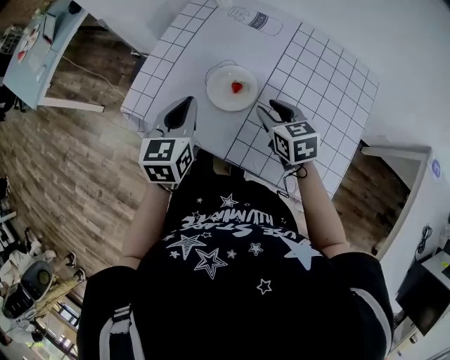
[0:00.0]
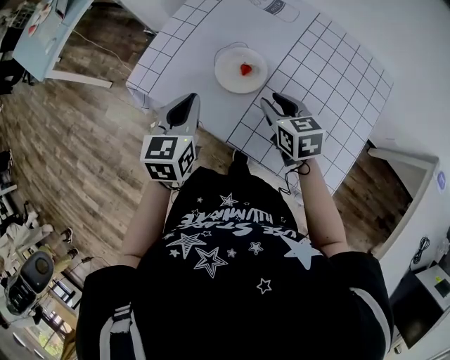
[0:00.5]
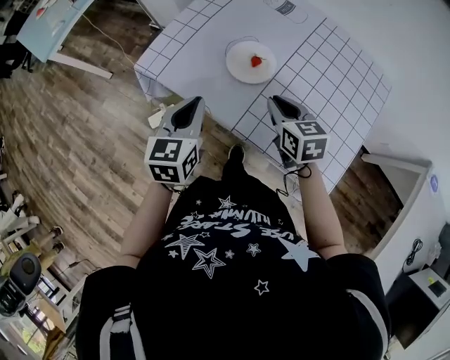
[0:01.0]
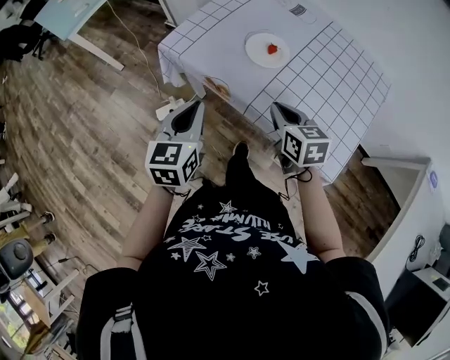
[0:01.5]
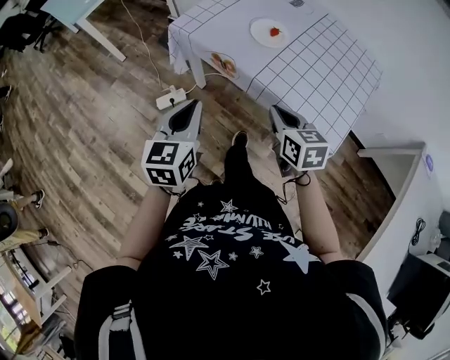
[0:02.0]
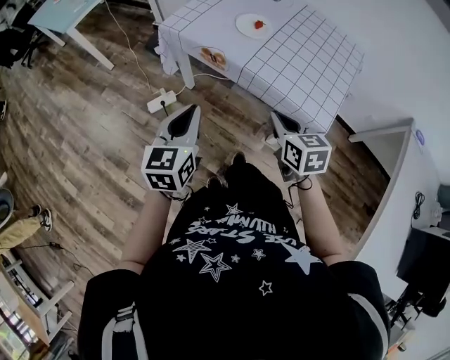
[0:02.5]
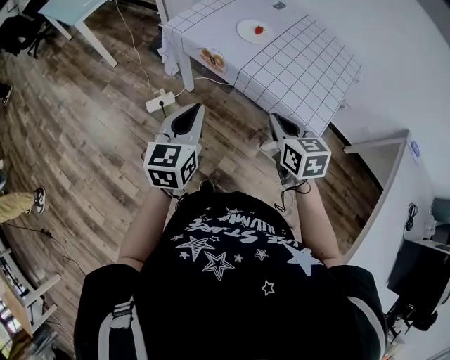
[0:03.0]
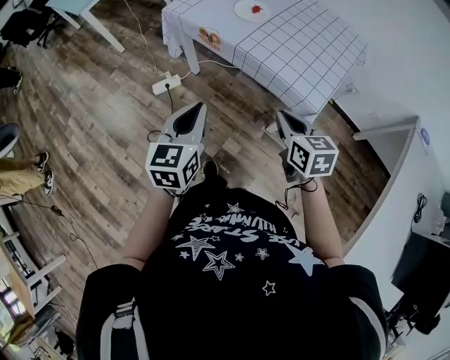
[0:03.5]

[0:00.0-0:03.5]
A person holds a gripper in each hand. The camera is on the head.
0:00.0 to 0:02.0: Both grippers move backward, about 25 cm. The right gripper closes its fingers.
0:02.0 to 0:03.5: Both grippers travel together backward and to the right, roughly 15 cm.

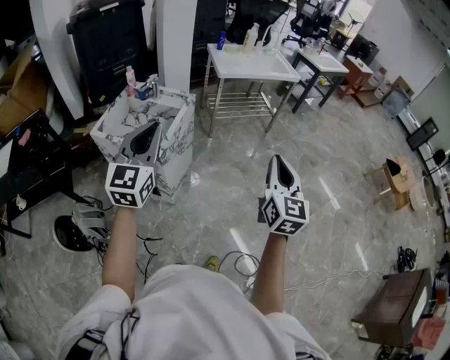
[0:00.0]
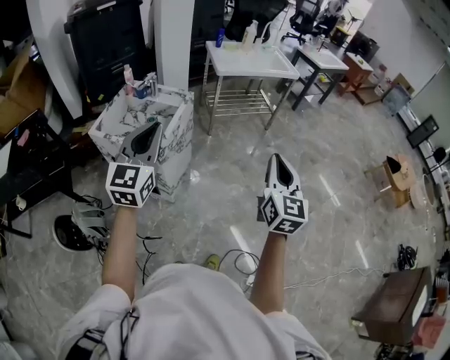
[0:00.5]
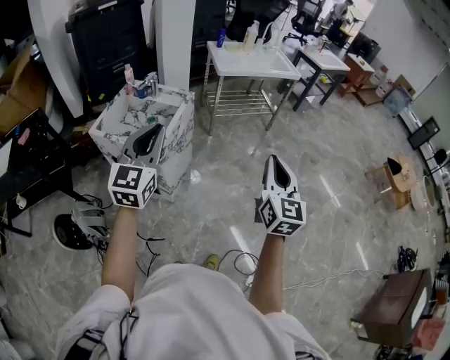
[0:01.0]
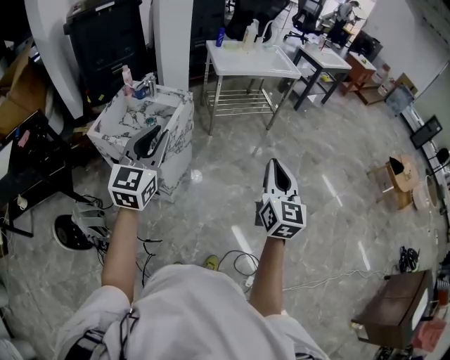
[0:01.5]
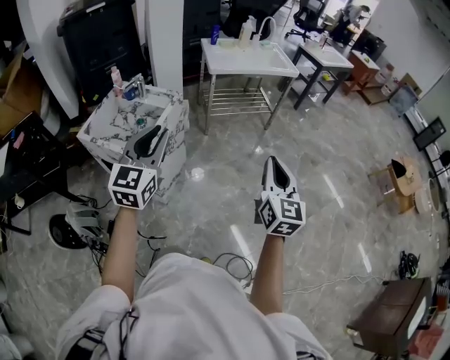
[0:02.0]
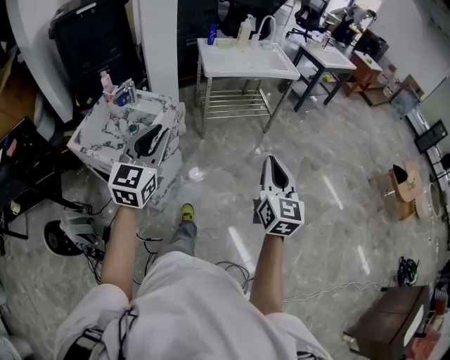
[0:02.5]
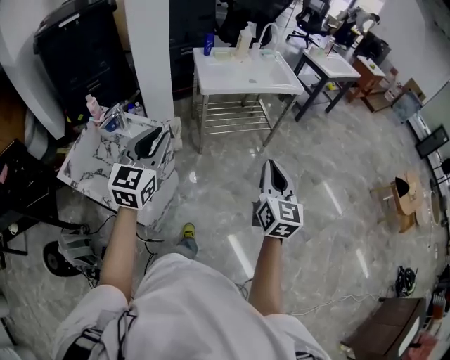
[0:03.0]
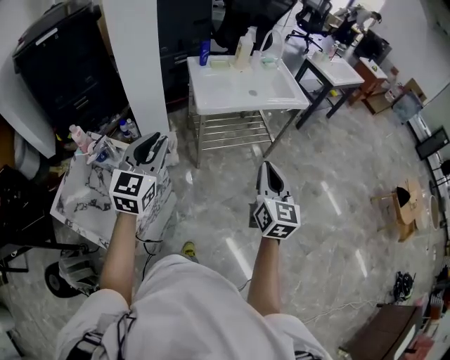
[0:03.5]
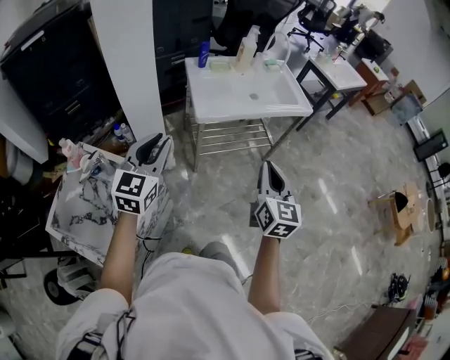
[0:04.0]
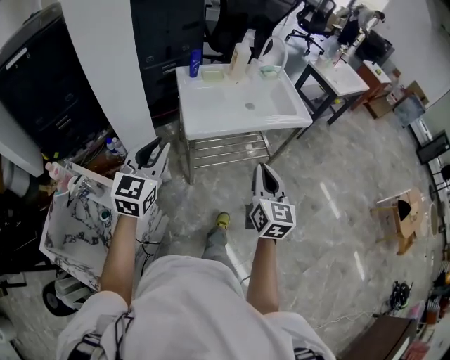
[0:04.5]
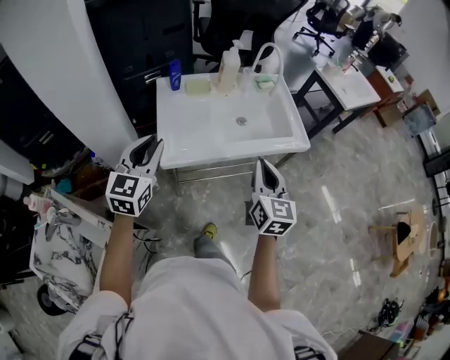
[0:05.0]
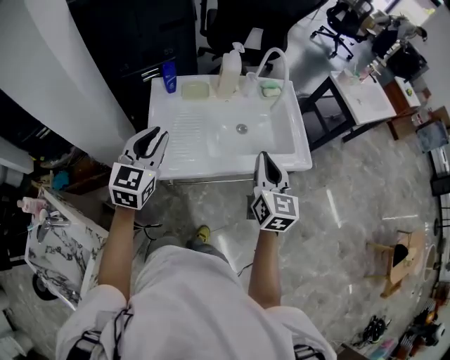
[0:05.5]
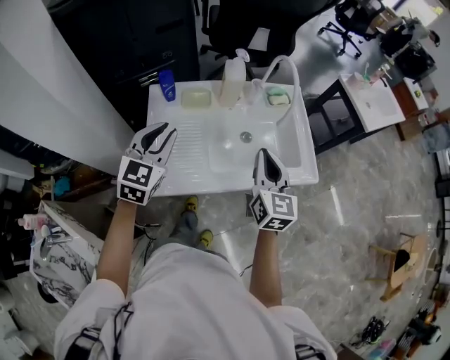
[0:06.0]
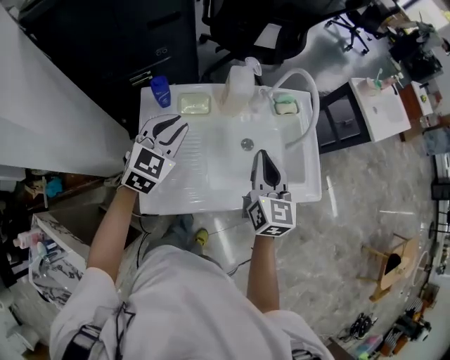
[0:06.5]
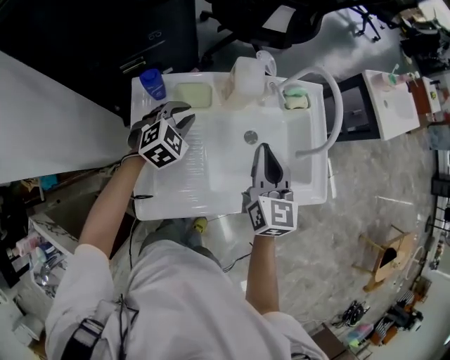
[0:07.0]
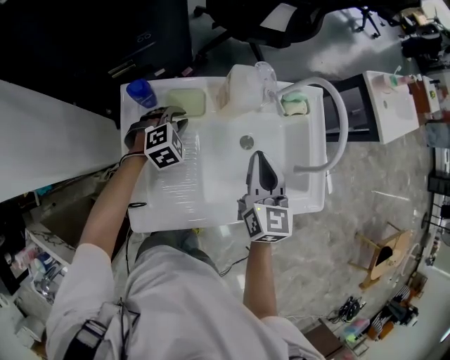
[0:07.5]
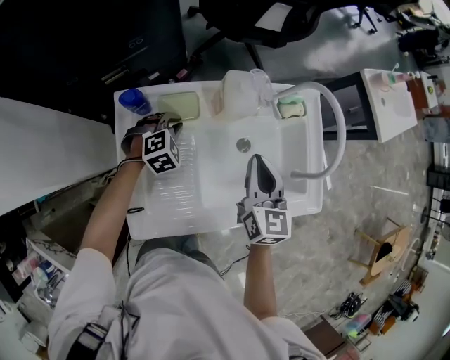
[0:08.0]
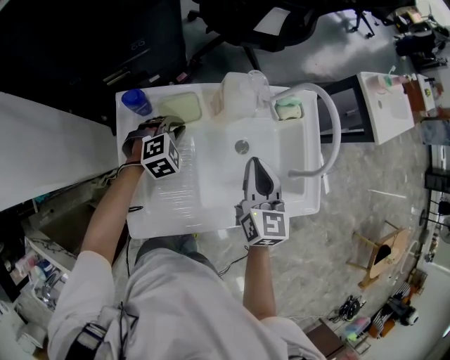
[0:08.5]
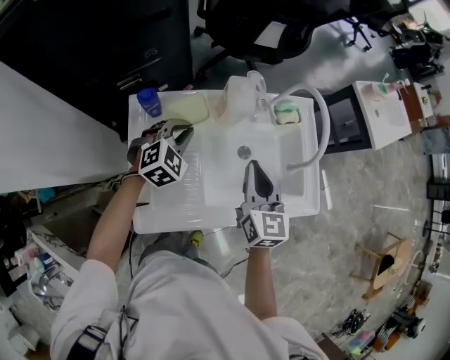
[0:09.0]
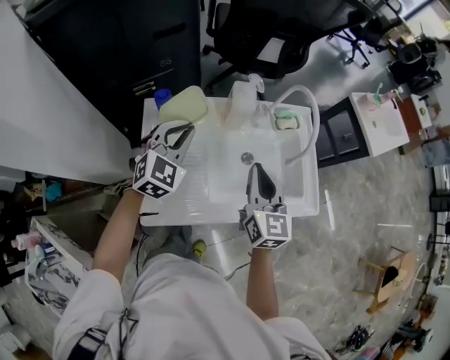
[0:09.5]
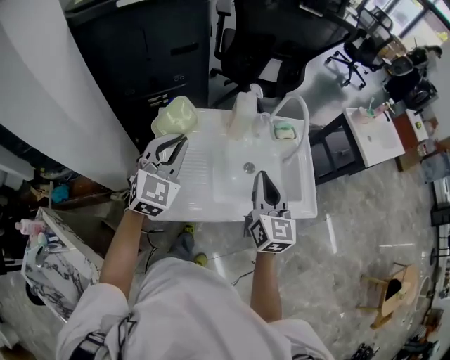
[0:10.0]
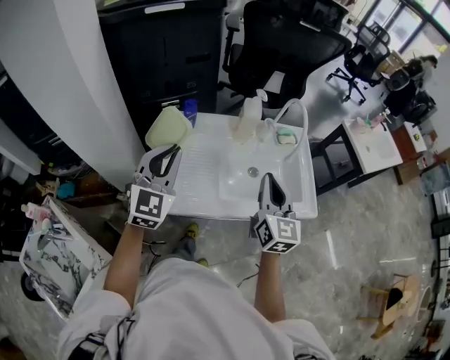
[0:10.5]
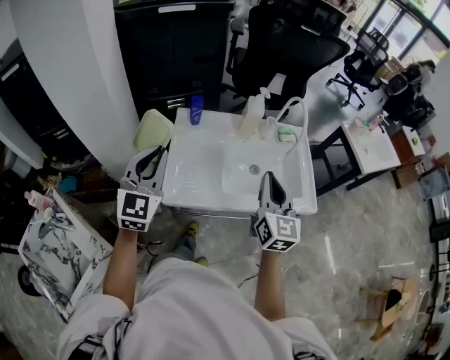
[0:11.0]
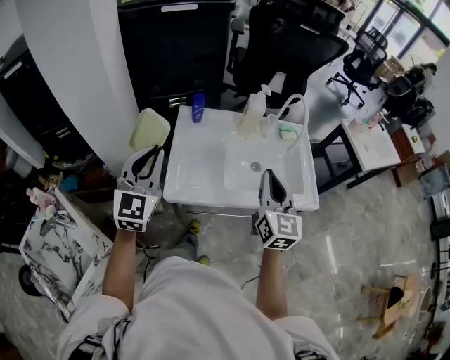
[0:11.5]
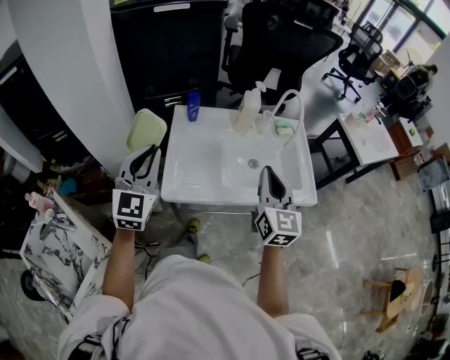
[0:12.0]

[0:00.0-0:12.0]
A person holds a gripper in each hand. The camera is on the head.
0:00.0 to 0:02.0: Both grippers travel together to the right and forward, some 10 cm.
0:02.0 to 0:04.0: Both grippers are carried forward, roughly 50 cm.
0:04.0 to 0:06.0: The pair of grippers is taken forward, about 60 cm.
0:06.0 to 0:08.0: The right gripper heads forward and downward, covering some 20 cm; the left gripper is displaced downward and forward by some 35 cm, and angles its fingers downward, by some 40 degrees.
0:08.0 to 0:10.0: The left gripper heads upward and backward, covering approximately 35 cm, and points its fingers approximately 40 degrees further upward; the right gripper travels backward and upward by roughly 20 cm.
0:10.0 to 0:12.0: The left gripper goes approximately 20 cm backward and to the left. The right gripper goes approximately 10 cm backward and upward.

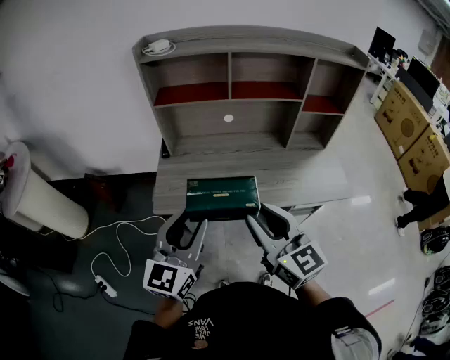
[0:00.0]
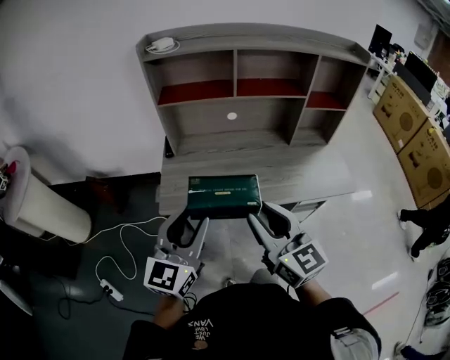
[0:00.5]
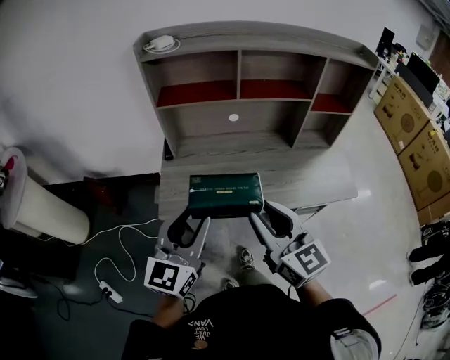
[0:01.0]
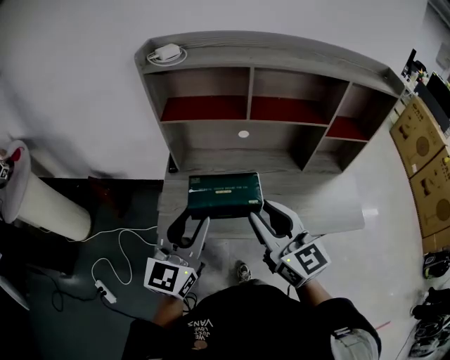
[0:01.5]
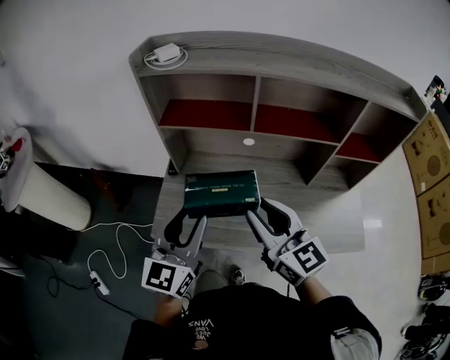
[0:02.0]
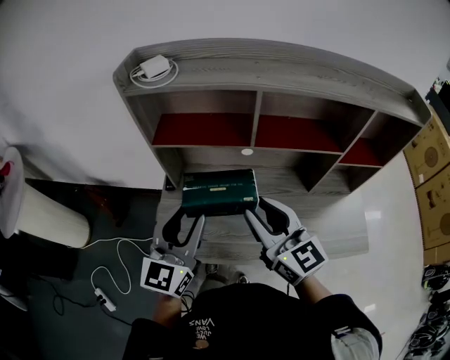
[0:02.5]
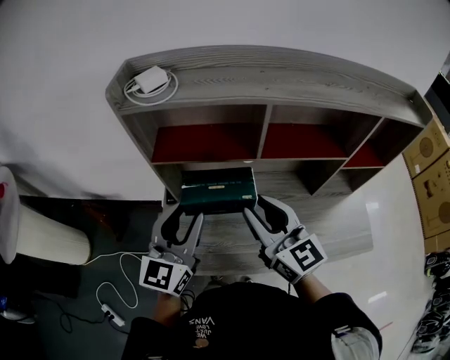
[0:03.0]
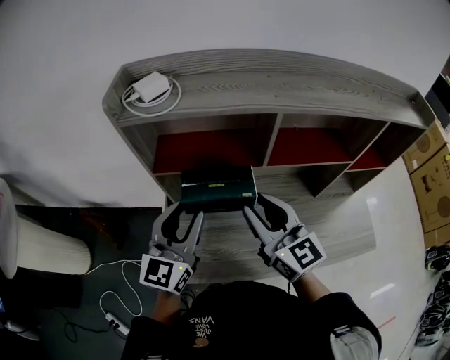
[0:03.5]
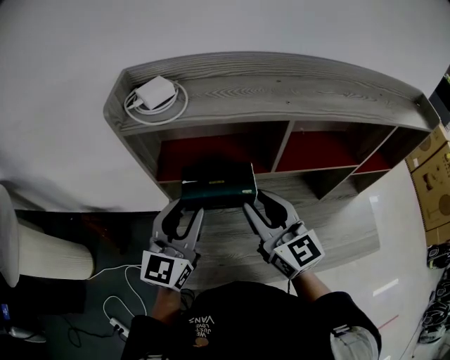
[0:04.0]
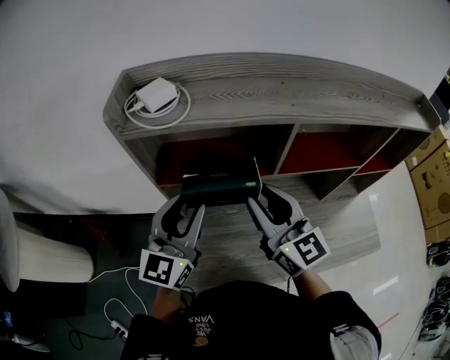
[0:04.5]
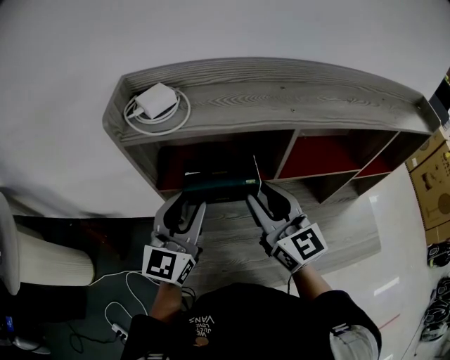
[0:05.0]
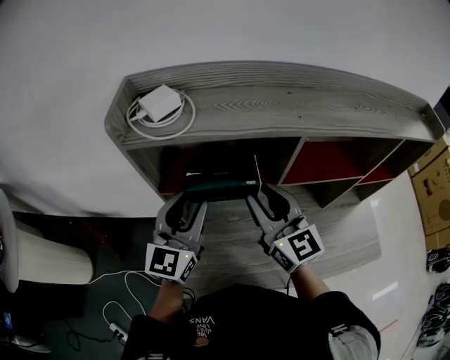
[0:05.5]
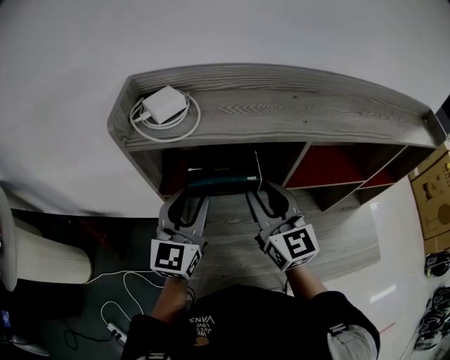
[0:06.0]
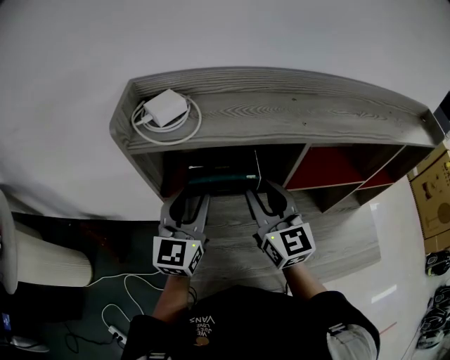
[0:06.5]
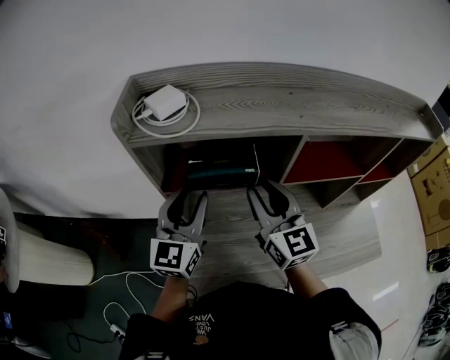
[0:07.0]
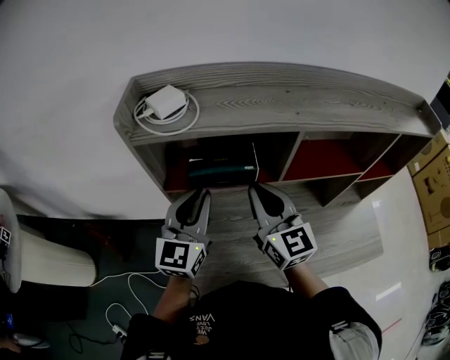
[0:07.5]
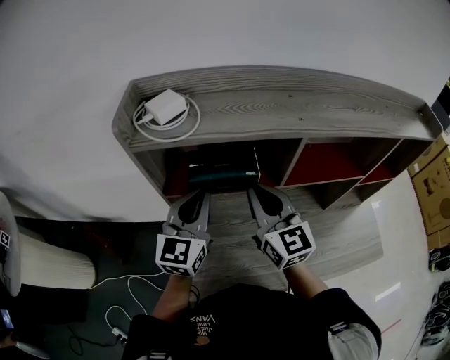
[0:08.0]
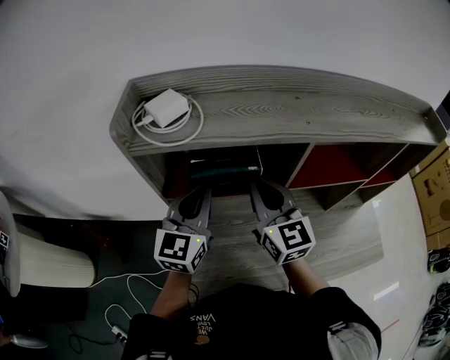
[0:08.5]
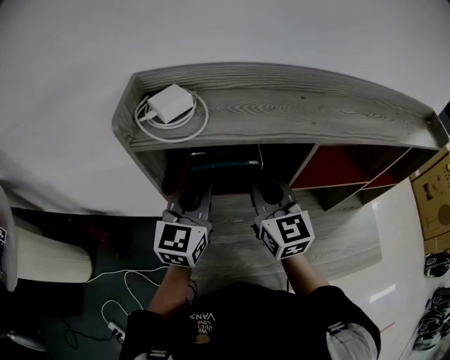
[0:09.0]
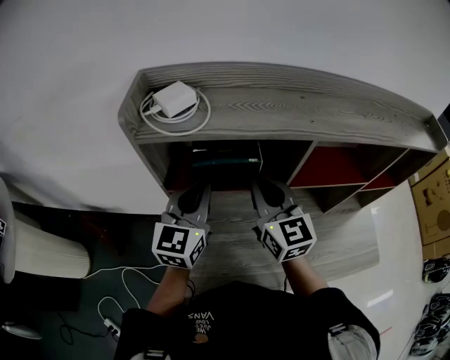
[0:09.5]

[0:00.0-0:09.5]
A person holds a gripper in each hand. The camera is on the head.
0:00.0 to 0:02.0: The grippers both shift forward by some 20 cm.
0:02.0 to 0:04.0: Both grippers travel together forward, about 20 cm.
0:04.0 to 0:05.5: The right gripper goes about 5 cm forward.
0:05.5 to 0:07.5: The right gripper closes.
0:07.5 to 0:09.5: There are only small adjustments of the grippers.

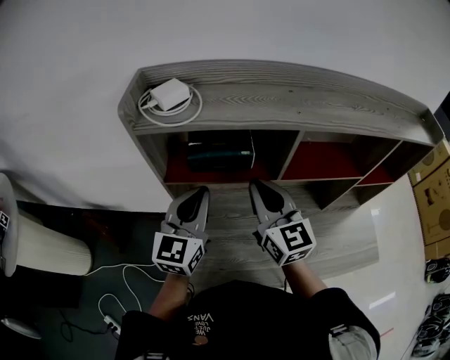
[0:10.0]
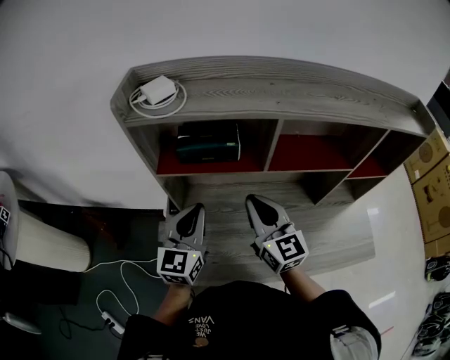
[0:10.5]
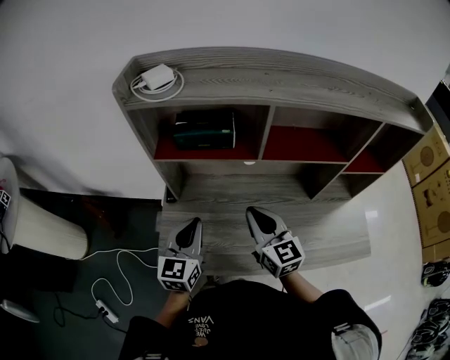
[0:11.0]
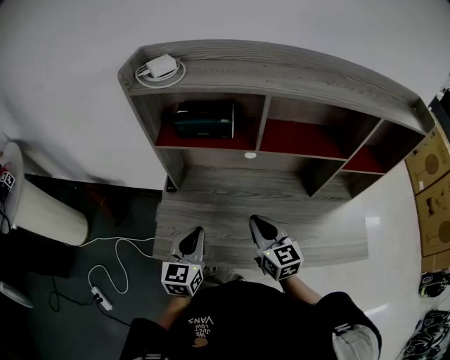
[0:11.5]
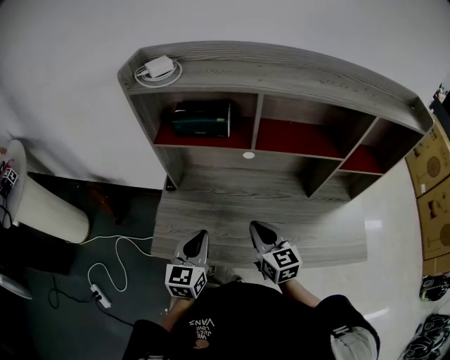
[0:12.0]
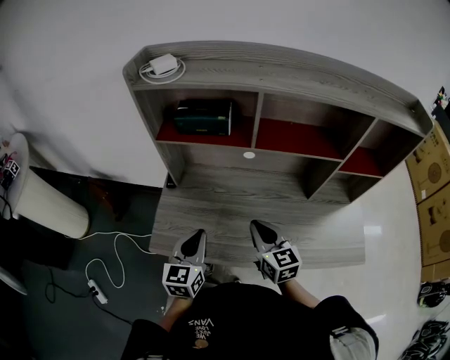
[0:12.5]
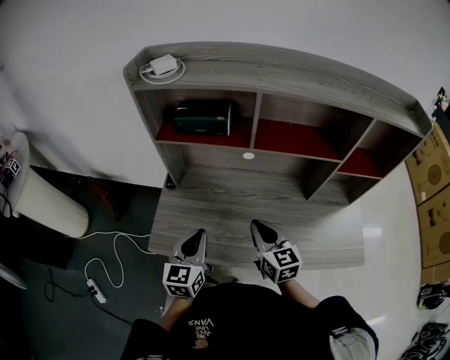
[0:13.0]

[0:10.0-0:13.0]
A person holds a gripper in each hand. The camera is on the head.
0:10.0 to 0:11.5: The left gripper moves backward and downward, some 25 cm. The right gripper travels downward, backward and to the right by some 20 cm.
0:11.5 to 0:13.0: There are only small adjustments of the grippers.
